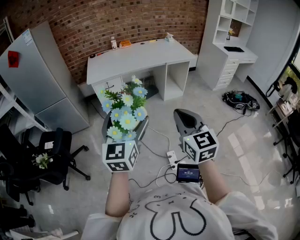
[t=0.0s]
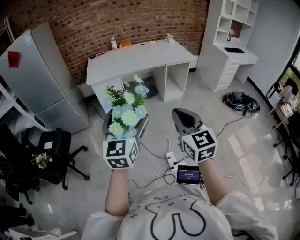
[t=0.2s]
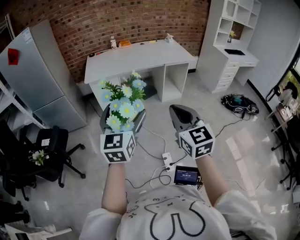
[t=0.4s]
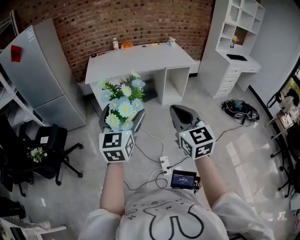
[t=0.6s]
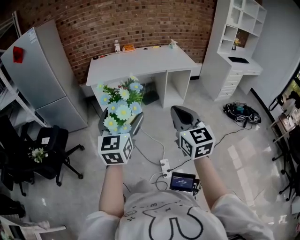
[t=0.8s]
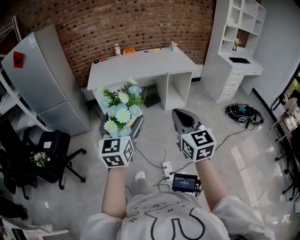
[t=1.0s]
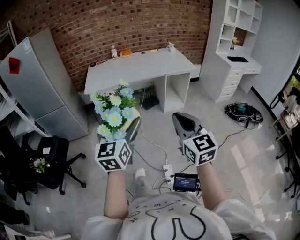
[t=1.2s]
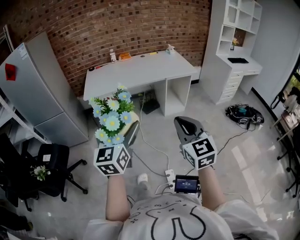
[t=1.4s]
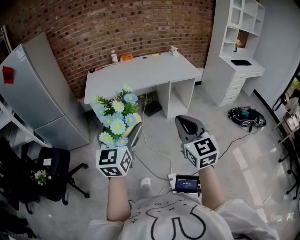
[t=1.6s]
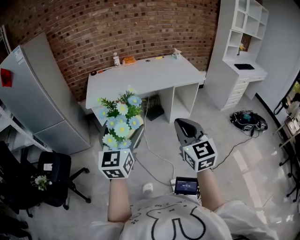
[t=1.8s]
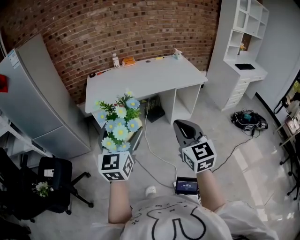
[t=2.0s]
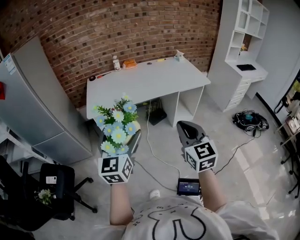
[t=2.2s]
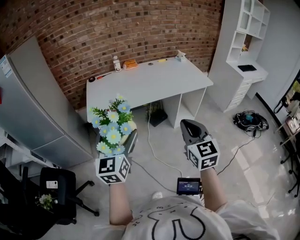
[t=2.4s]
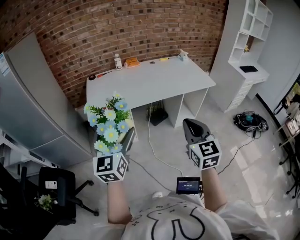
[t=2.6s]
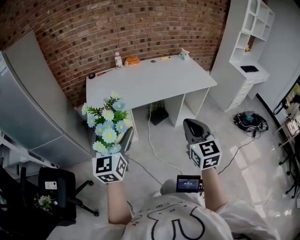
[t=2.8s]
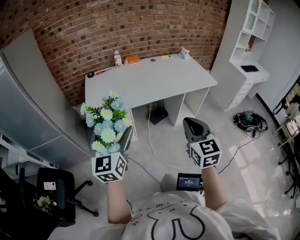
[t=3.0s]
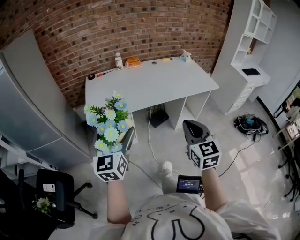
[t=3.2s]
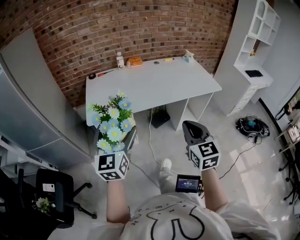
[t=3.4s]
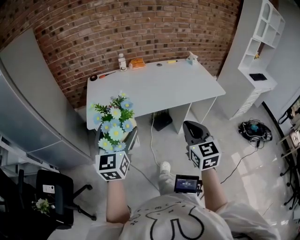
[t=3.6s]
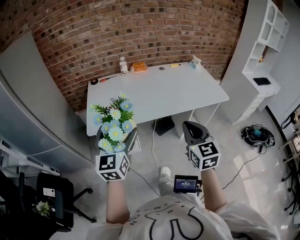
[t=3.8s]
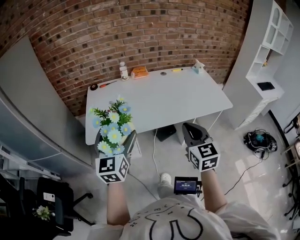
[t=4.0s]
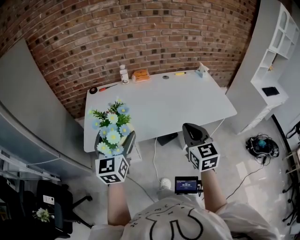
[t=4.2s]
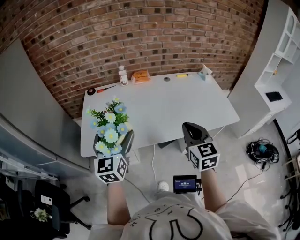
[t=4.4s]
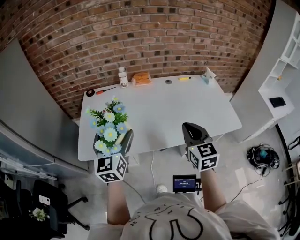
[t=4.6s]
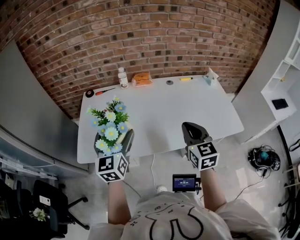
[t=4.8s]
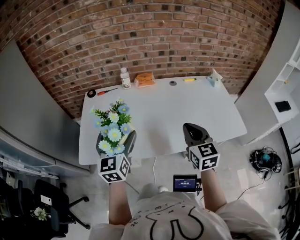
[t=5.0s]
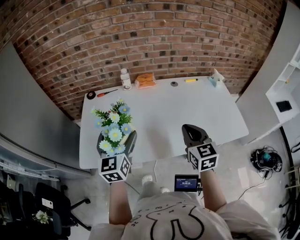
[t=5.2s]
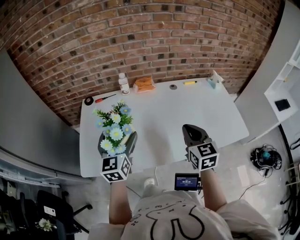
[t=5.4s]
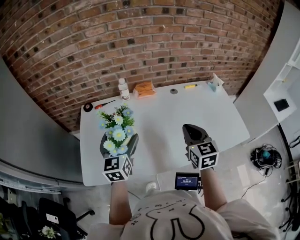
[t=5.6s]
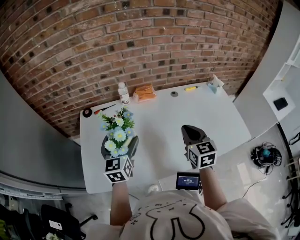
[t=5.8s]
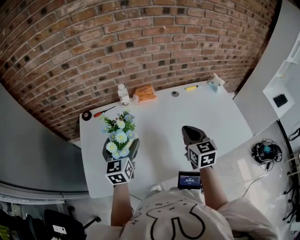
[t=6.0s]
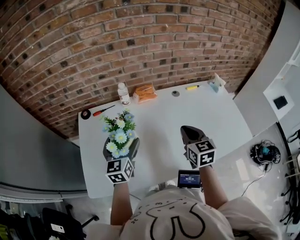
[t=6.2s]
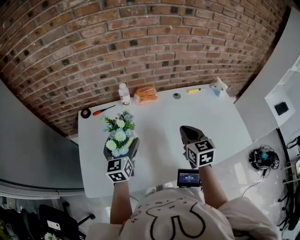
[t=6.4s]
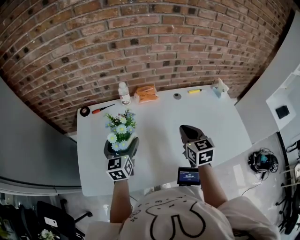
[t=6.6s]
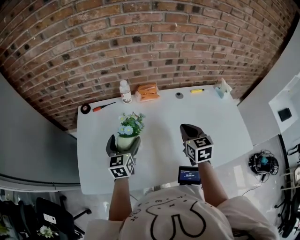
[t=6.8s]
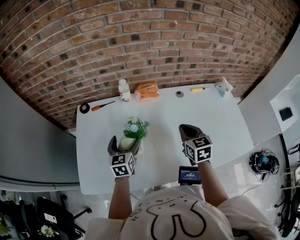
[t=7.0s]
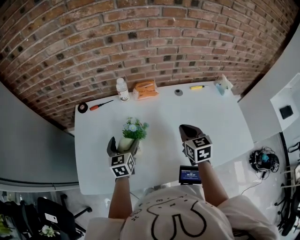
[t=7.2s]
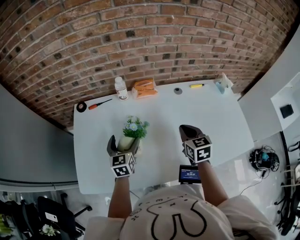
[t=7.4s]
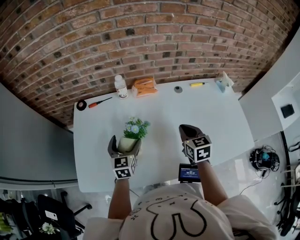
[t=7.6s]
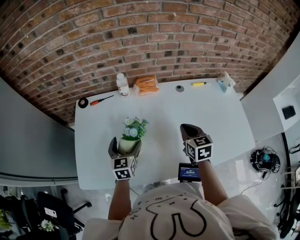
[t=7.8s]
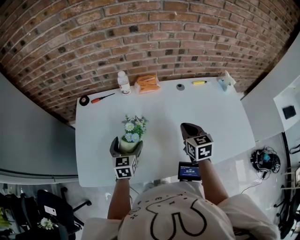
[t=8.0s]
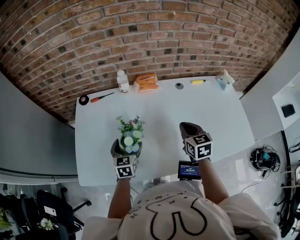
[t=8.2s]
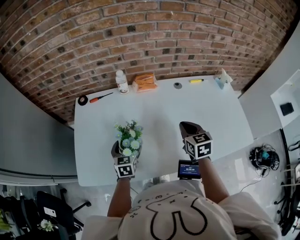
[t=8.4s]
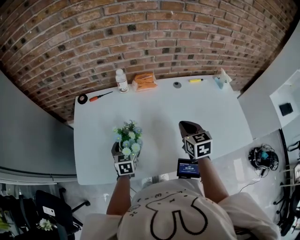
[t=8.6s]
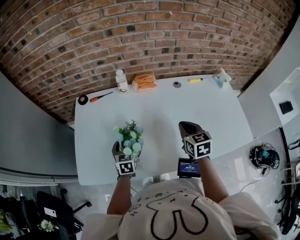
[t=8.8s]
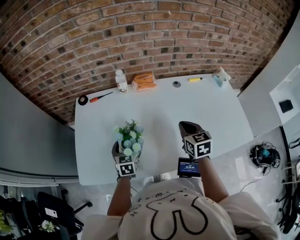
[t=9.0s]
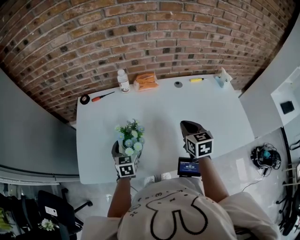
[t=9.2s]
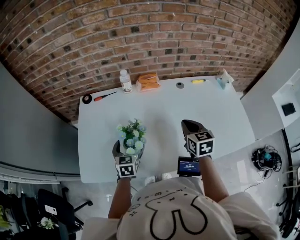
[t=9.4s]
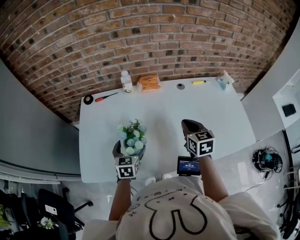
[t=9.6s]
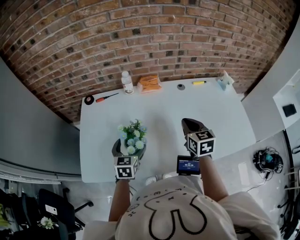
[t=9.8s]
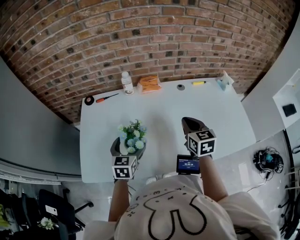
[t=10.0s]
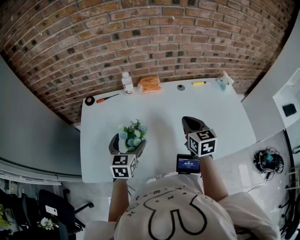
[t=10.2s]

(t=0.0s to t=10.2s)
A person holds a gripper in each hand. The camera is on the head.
t=0.0s - t=1.4s: The left gripper is displaced forward by some 10 cm. Meanwhile the right gripper shifts some 15 cm forward and to the right.
t=1.4s - t=3.0s: Both grippers travel together forward and to the left, some 35 cm.
t=3.0s - t=4.4s: The two grippers go roughly 35 cm forward.
t=4.4s - t=5.8s: Both grippers move forward, about 25 cm.
t=5.8s - t=7.2s: The left gripper shifts some 15 cm downward and forward. The right gripper heads forward and downward, covering roughly 10 cm.
t=7.2s - t=8.8s: The left gripper is displaced downward and backward by about 10 cm.
t=8.8s - t=10.2s: The left gripper heads upward, covering about 10 cm.

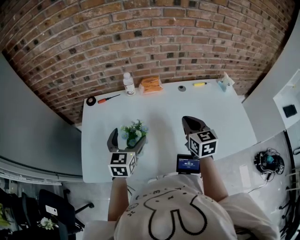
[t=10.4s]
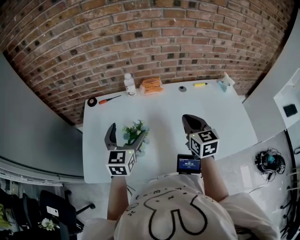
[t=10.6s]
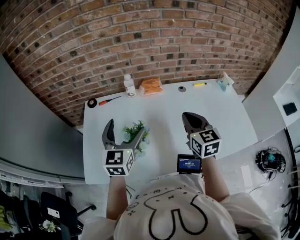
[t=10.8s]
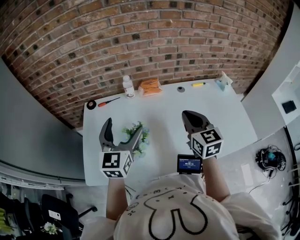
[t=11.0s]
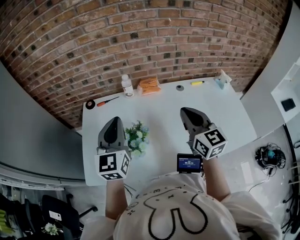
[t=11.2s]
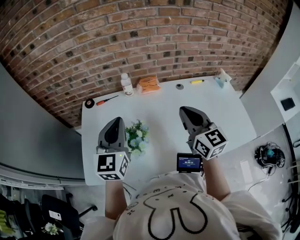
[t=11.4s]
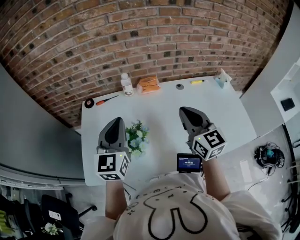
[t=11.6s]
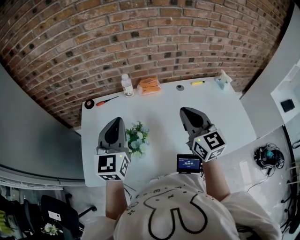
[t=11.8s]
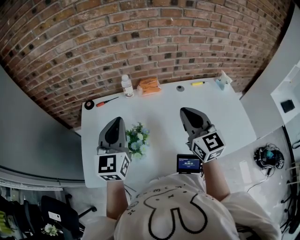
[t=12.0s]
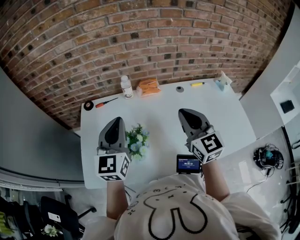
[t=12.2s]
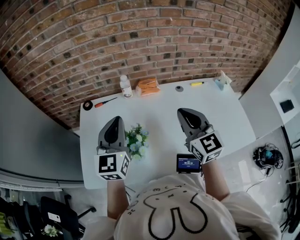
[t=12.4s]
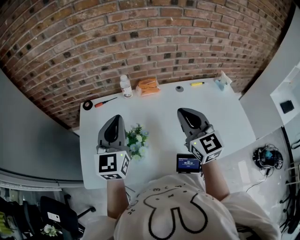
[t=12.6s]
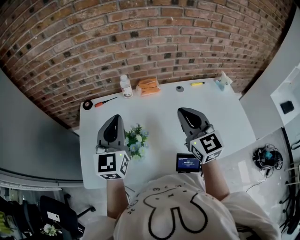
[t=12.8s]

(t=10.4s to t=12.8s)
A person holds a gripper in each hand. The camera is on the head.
t=10.4s - t=11.6s: The two grippers go approximately 10 cm upward. The left gripper closes.
t=11.6s - t=12.8s: The grippers stay close to where they were, moving slightly.

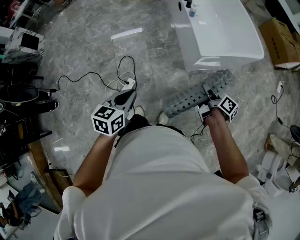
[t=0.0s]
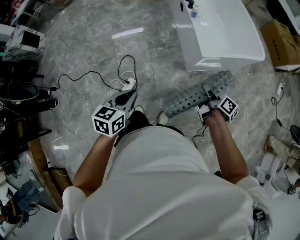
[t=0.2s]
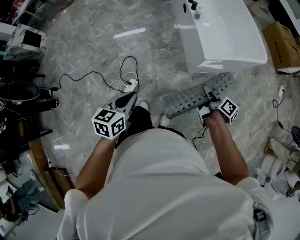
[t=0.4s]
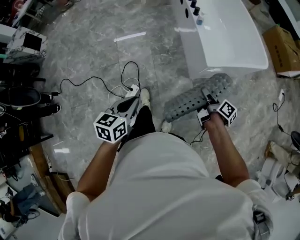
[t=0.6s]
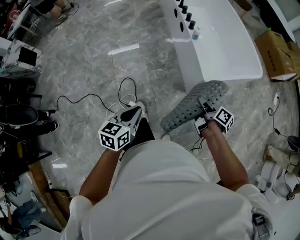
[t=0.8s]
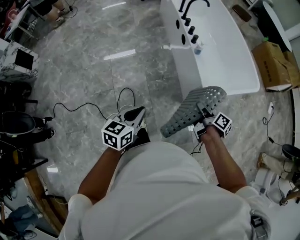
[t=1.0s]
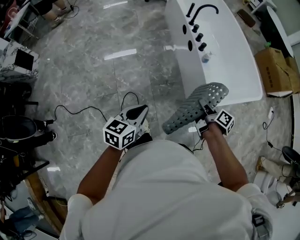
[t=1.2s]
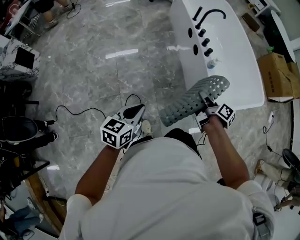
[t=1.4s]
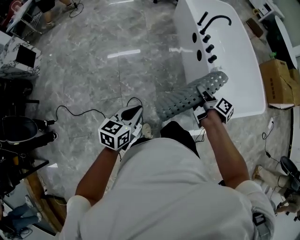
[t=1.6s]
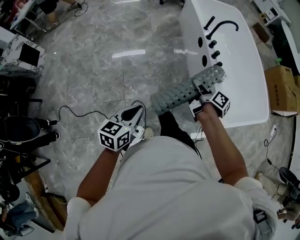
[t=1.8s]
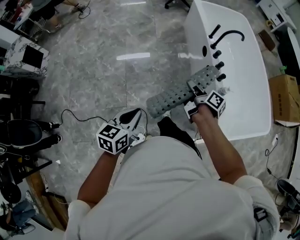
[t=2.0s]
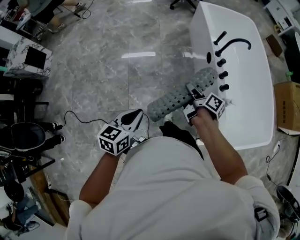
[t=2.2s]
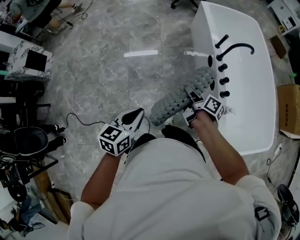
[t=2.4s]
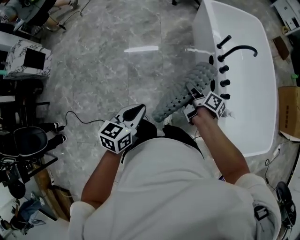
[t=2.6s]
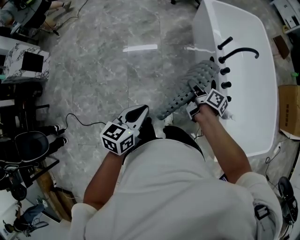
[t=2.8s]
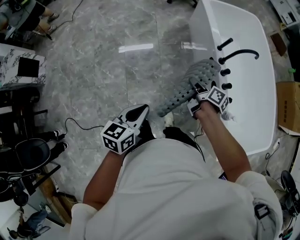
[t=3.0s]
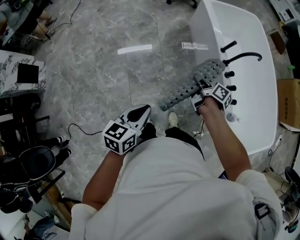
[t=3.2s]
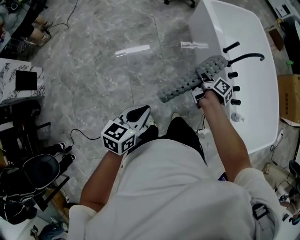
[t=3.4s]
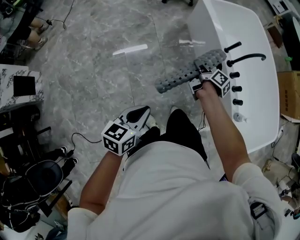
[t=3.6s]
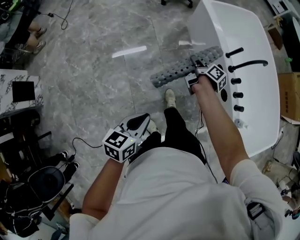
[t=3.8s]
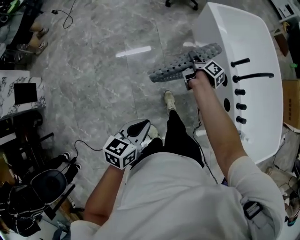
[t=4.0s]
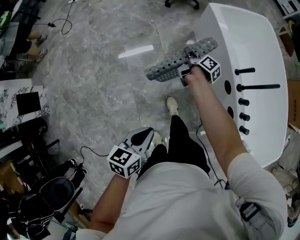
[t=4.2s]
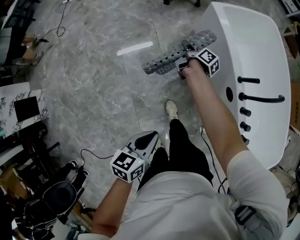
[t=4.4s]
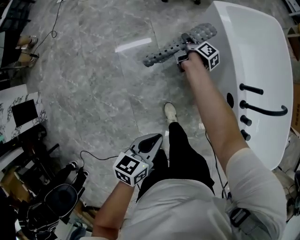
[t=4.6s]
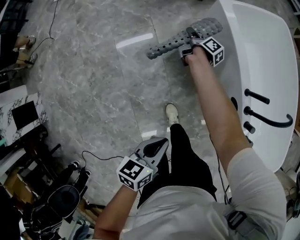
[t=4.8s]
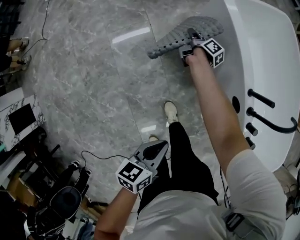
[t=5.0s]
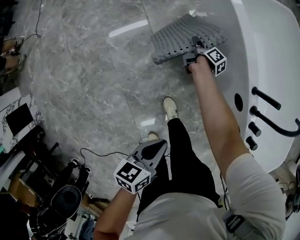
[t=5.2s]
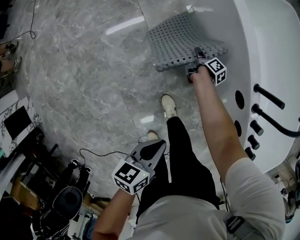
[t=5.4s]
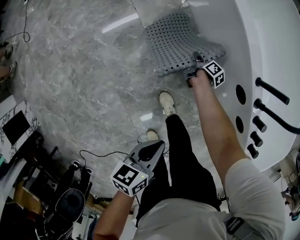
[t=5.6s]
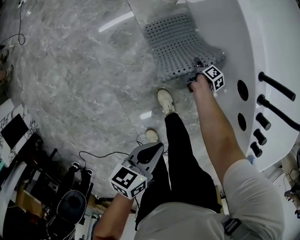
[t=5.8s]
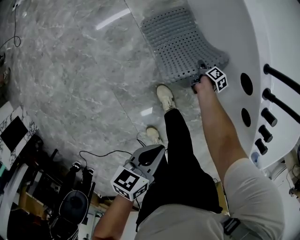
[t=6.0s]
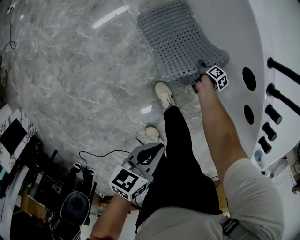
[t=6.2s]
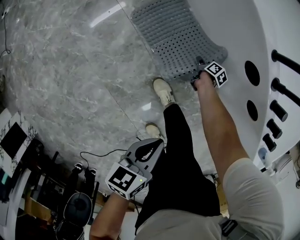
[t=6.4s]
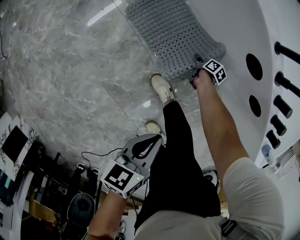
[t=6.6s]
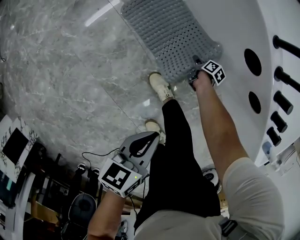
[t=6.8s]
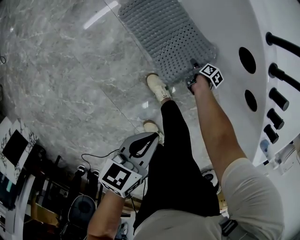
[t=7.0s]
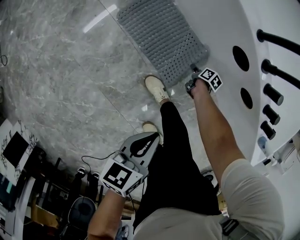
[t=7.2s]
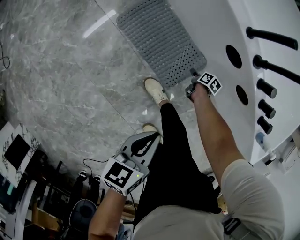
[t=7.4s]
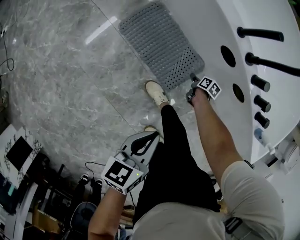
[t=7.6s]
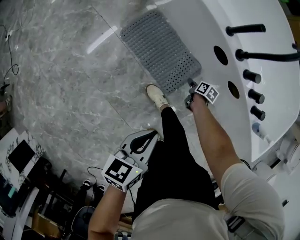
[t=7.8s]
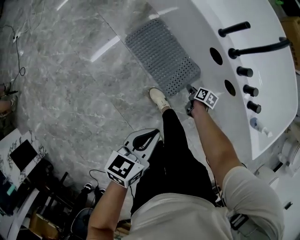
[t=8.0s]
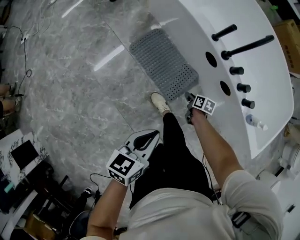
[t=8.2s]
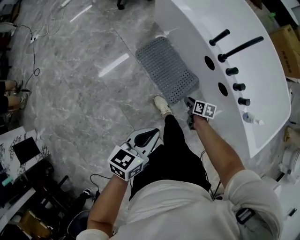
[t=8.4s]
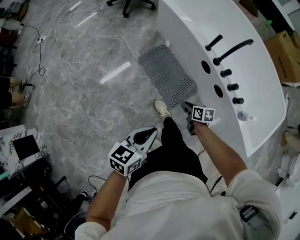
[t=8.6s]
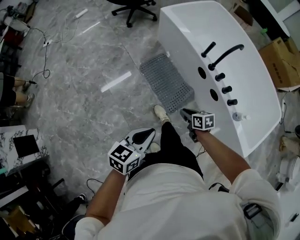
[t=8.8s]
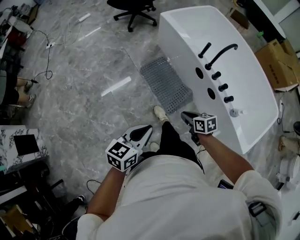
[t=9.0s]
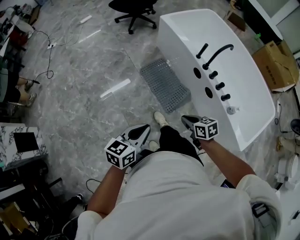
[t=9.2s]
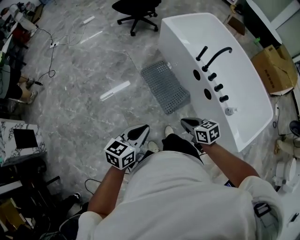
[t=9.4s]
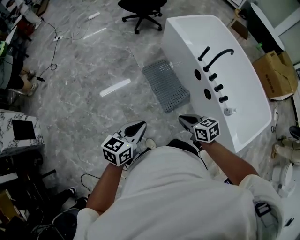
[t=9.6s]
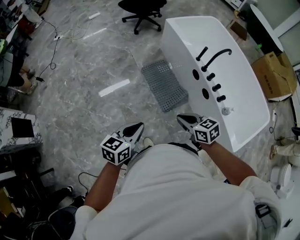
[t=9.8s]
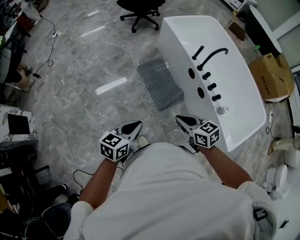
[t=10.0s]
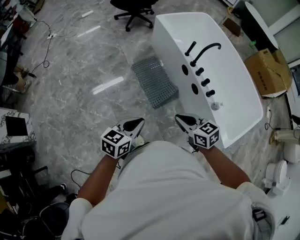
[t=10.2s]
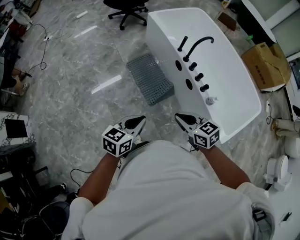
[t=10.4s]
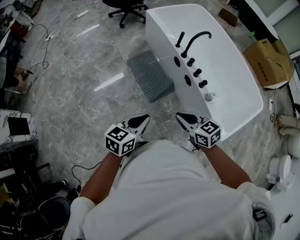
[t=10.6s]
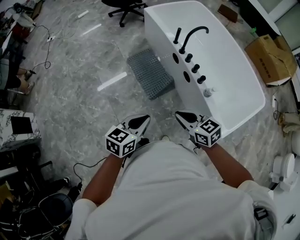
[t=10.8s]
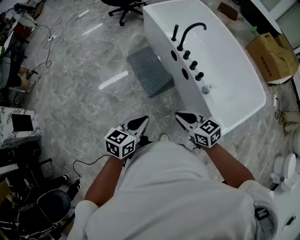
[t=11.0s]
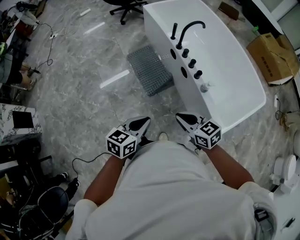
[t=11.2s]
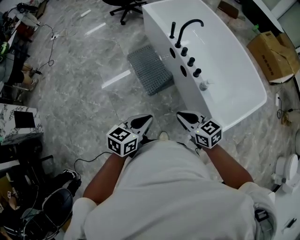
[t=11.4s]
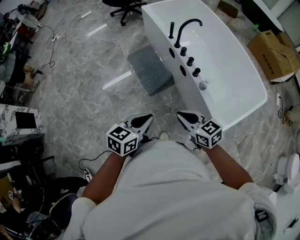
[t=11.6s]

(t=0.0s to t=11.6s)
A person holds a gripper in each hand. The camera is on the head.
t=0.0s - t=1.4s: The two grippers go roughly 35 cm forward and to the left.
t=1.4s - t=2.8s: Both grippers move forward, roughly 35 cm.
t=2.8s - t=4.4s: The right gripper shifts about 50 cm forward and to the left, and rotates roughly 30 degrees, while the left gripper goes about 25 cm forward and to the left.
t=4.4s - t=5.8s: The right gripper is displaced downward and to the right by roughly 40 cm, and swivels some 30 degrees, while the left gripper shifts approximately 25 cm downward and forward.
t=5.8s - t=7.2s: The left gripper shifts some 10 cm downward and to the right. Meanwhile the right gripper travels to the right, backward and downward by some 25 cm, and opens.
t=7.2s - t=8.8s: The right gripper goes roughly 50 cm upward and backward, rolls counterclockwise, seen from behind, by some 50 degrees, and closes up; the left gripper is displaced upward and backward by about 35 cm, and rotates some 30 degrees.
t=8.8s - t=10.2s: The left gripper goes some 10 cm backward. The right gripper travels upward and backward by approximately 30 cm, and swivels about 30 degrees.
t=10.2s - t=11.6s: Both grippers travel together to the right and backward, roughly 20 cm.
